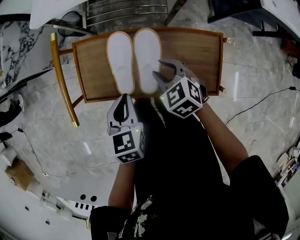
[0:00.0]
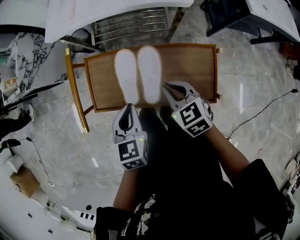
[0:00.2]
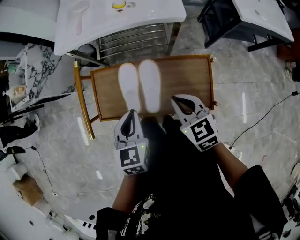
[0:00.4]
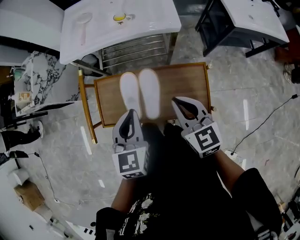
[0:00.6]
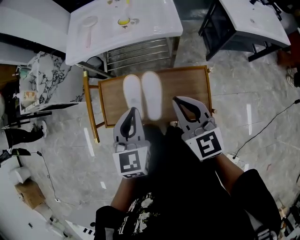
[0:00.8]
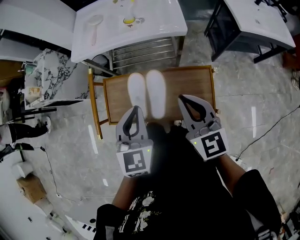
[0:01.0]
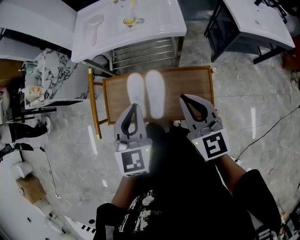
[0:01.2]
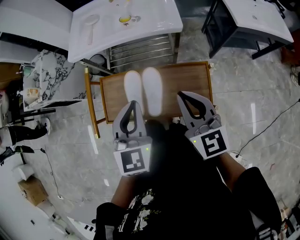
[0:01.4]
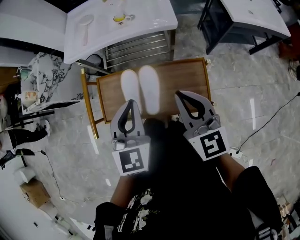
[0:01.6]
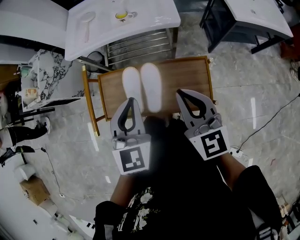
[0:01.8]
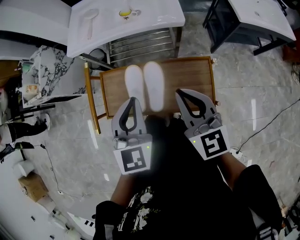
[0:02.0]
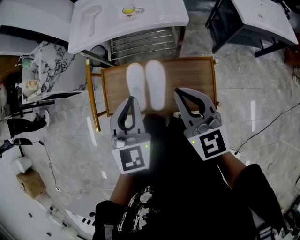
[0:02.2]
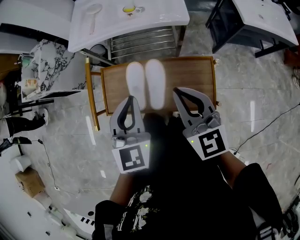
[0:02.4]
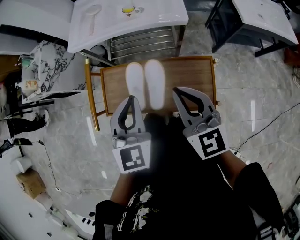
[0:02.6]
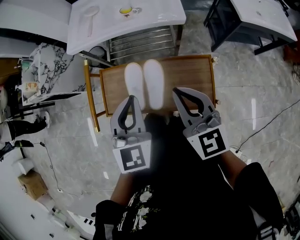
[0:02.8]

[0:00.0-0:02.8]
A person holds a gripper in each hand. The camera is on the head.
0.0 to 1.4 s: The grippers both shift upward by roughly 25 cm. The left gripper changes its angle by about 30 degrees. Meanwhile the right gripper tips its fingers upward by about 40 degrees, and closes up.
1.4 to 2.8 s: The grippers move only a little.

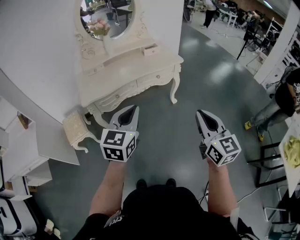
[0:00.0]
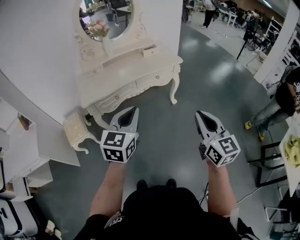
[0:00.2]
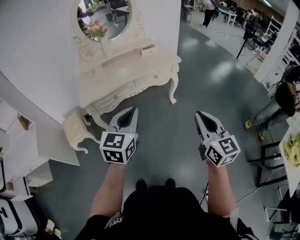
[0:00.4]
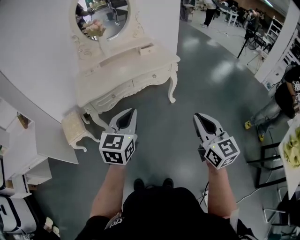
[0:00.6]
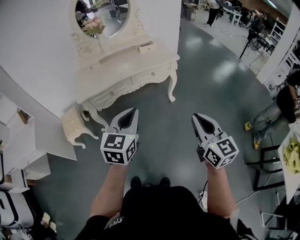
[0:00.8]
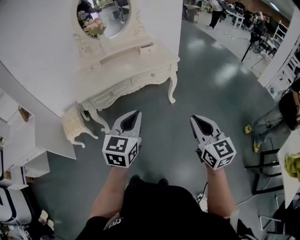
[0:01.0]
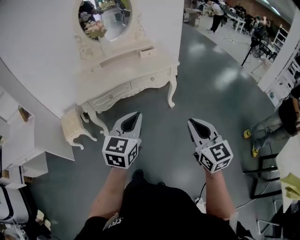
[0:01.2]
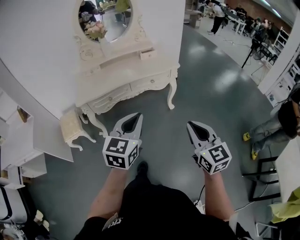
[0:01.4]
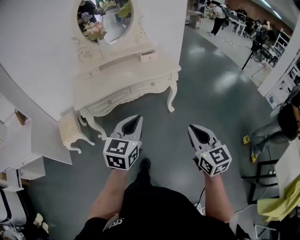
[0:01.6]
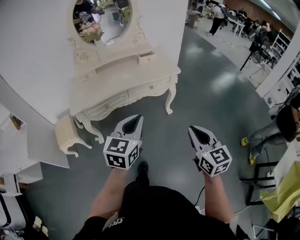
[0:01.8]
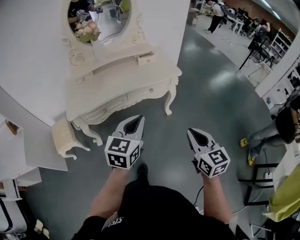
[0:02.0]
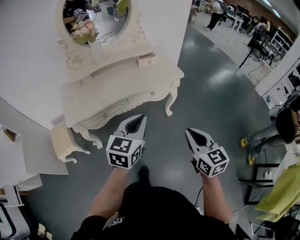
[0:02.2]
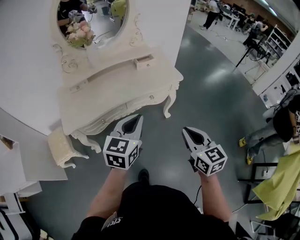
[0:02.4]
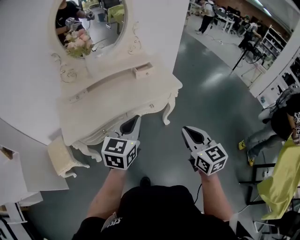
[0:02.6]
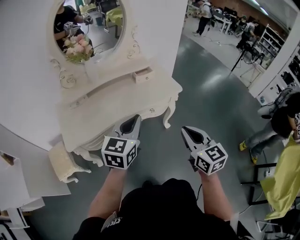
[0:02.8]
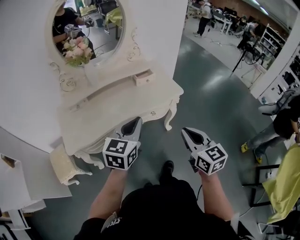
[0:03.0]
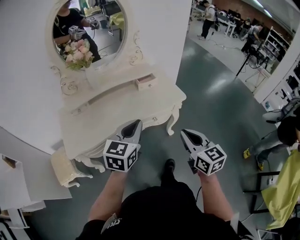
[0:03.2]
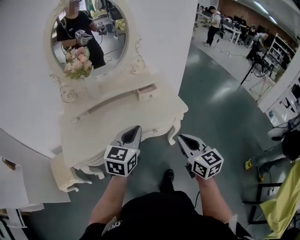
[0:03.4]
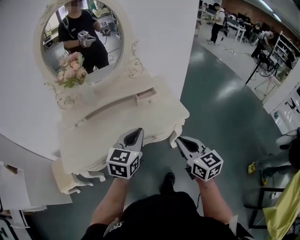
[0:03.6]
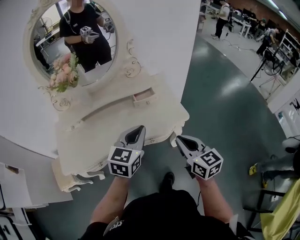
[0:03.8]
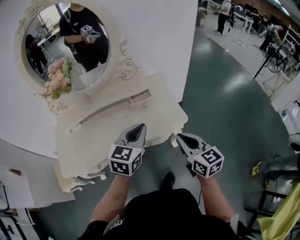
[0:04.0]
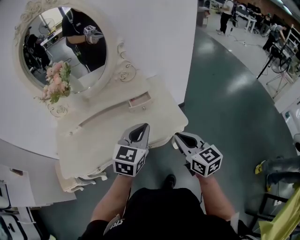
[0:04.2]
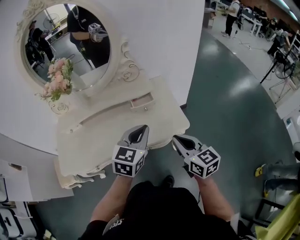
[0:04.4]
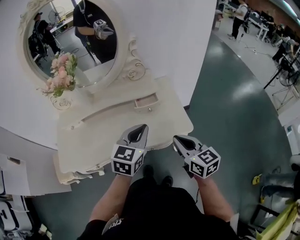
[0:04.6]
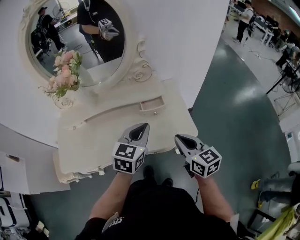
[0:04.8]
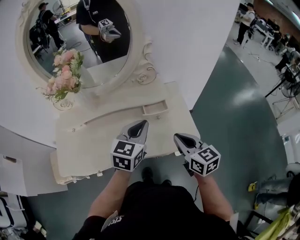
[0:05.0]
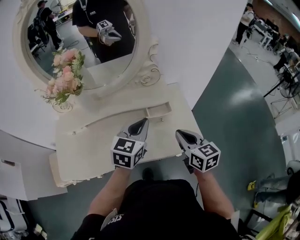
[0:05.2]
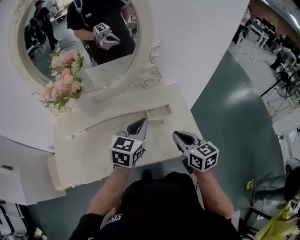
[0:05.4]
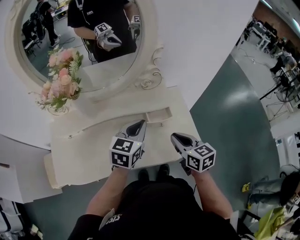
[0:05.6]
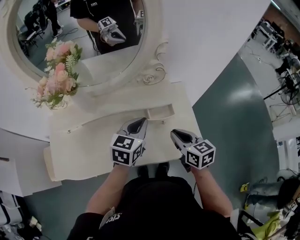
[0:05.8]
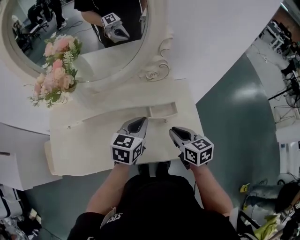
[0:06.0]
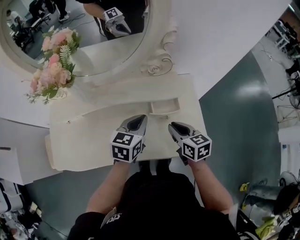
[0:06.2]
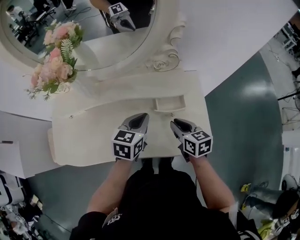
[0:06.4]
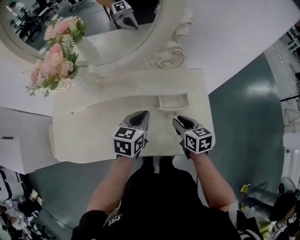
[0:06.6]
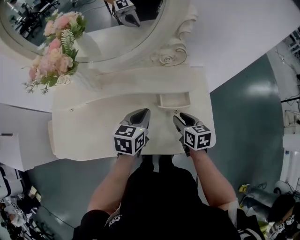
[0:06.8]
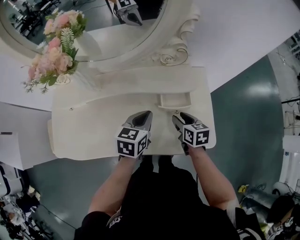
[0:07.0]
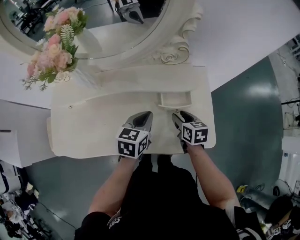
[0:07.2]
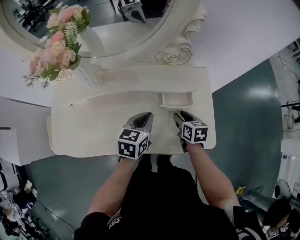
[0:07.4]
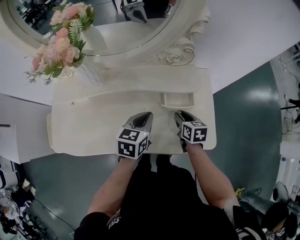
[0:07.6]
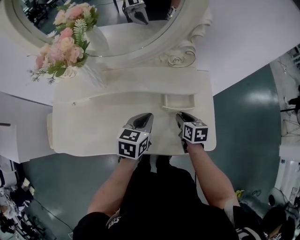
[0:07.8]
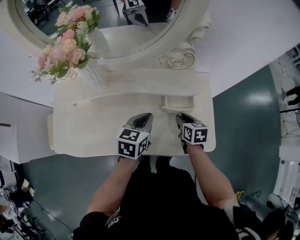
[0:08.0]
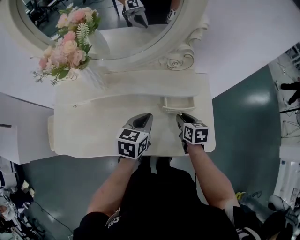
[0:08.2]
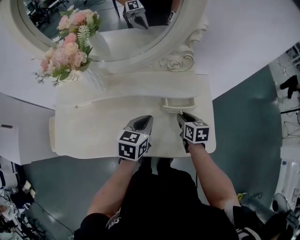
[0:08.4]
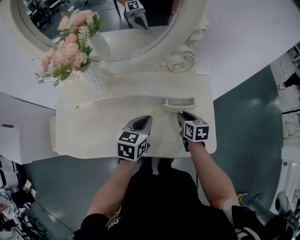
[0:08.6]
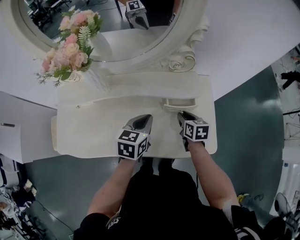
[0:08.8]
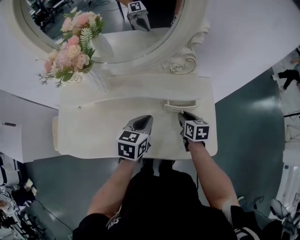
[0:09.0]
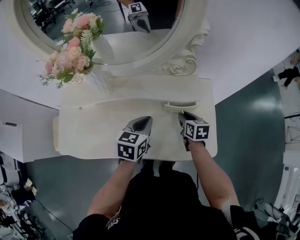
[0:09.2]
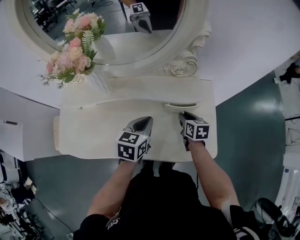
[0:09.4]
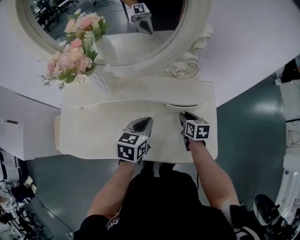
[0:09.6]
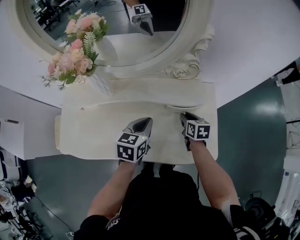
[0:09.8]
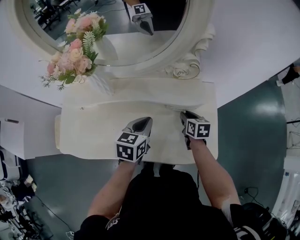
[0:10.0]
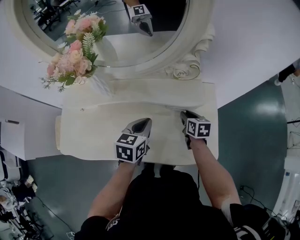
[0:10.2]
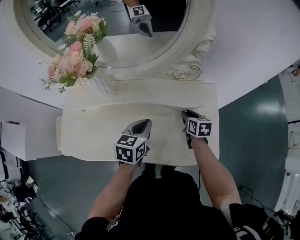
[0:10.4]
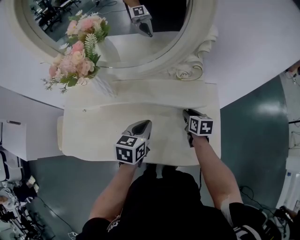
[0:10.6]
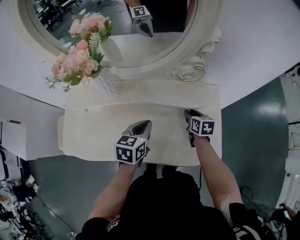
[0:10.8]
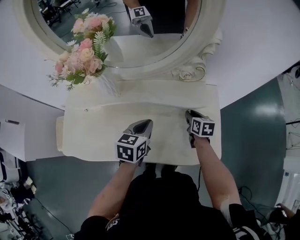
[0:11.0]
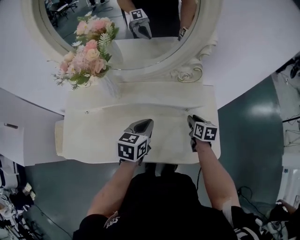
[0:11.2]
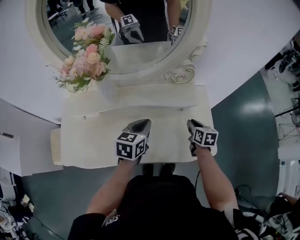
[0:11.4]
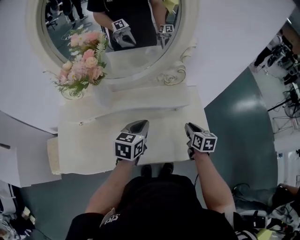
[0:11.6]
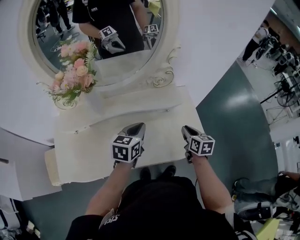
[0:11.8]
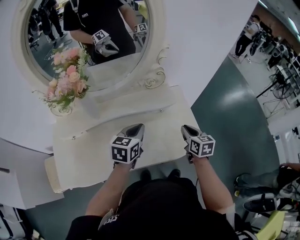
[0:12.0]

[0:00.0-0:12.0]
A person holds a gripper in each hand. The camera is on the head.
0.0 to 1.6 s: The left gripper moves to the right, approximately 10 cm. Meanwhile the right gripper goes roughly 10 cm to the right and downward.
1.6 to 3.0 s: Both grippers travel together forward, roughly 30 cm.
3.0 to 4.4 s: The right gripper moves forward, about 25 cm, and changes its angle by roughly 20 degrees, while the left gripper travels forward and to the right by about 30 cm.
4.4 to 6.0 s: The right gripper heads forward, downward and to the left, covering some 25 cm. The left gripper is displaced forward, to the left and downward by some 25 cm.
6.0 to 7.6 s: The left gripper is displaced downward by some 5 cm. The right gripper moves downward and forward, about 15 cm.
7.6 to 9.0 s: The grippers make only small movements.
9.0 to 10.4 s: The grippers move only a little.
10.4 to 12.0 s: The left gripper travels upward by some 5 cm, and swivels about 20 degrees. The right gripper shifts about 20 cm backward, upward and to the right, and turns by some 20 degrees.

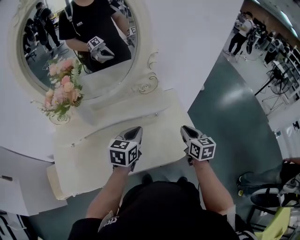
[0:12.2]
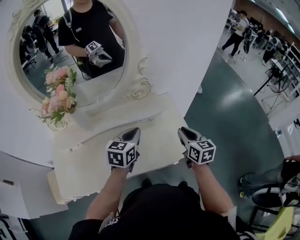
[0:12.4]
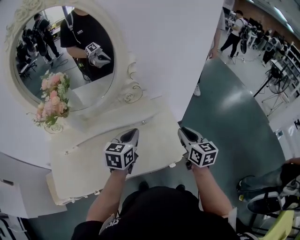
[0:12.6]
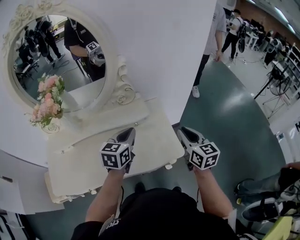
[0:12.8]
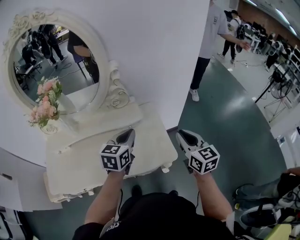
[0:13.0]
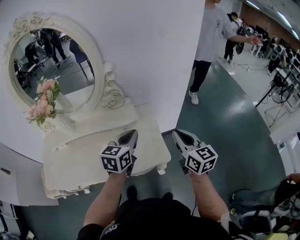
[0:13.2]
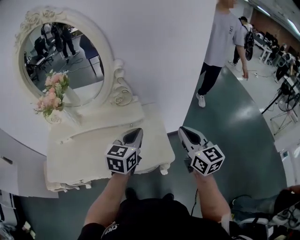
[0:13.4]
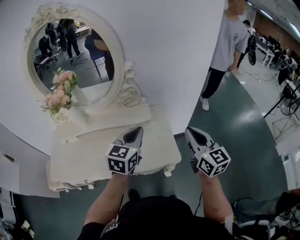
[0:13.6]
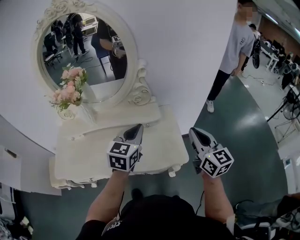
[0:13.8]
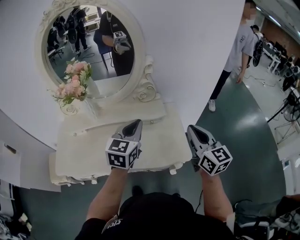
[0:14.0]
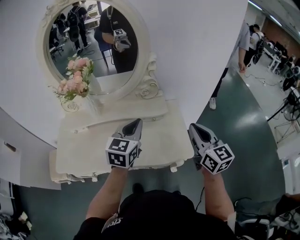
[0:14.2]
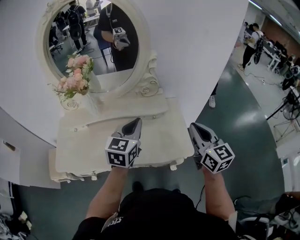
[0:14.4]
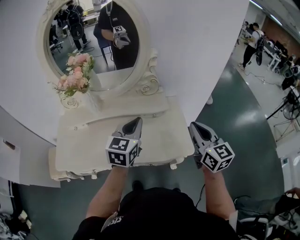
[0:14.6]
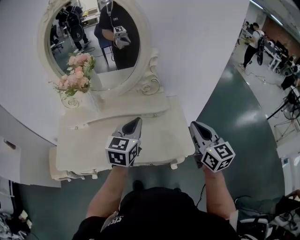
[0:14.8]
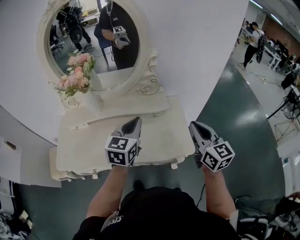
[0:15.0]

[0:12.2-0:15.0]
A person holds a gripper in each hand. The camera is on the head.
12.2 to 13.6 s: The right gripper is displaced upward and to the right by about 25 cm, and changes its angle by roughly 30 degrees. The left gripper moves to the right and upward, some 20 cm.
13.6 to 15.0 s: Both grippers travel together to the left, roughly 10 cm.

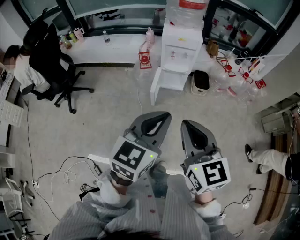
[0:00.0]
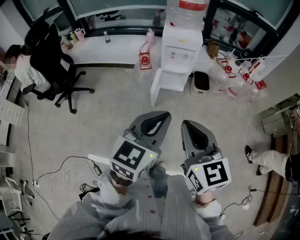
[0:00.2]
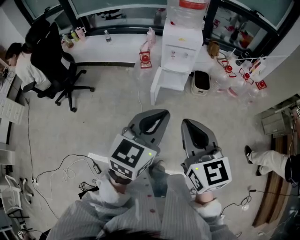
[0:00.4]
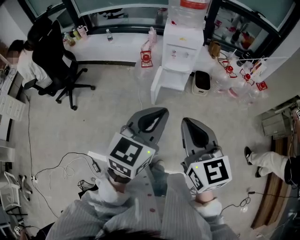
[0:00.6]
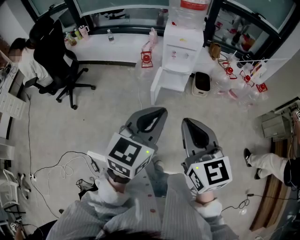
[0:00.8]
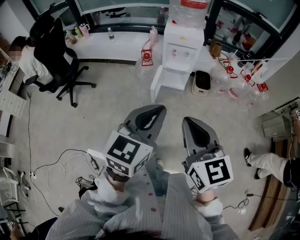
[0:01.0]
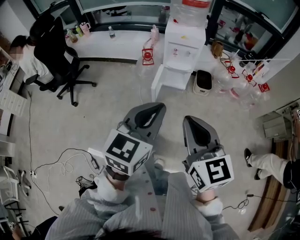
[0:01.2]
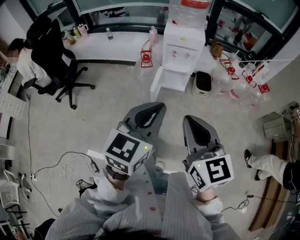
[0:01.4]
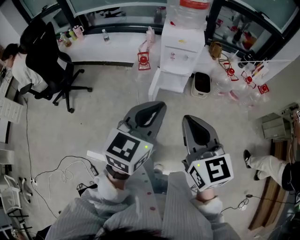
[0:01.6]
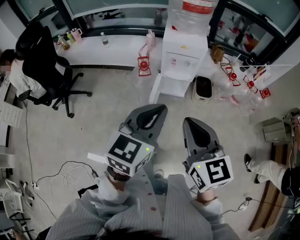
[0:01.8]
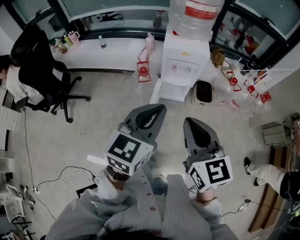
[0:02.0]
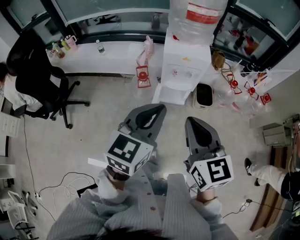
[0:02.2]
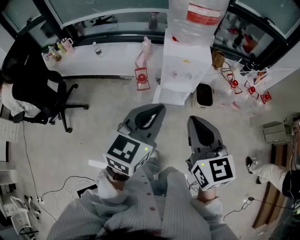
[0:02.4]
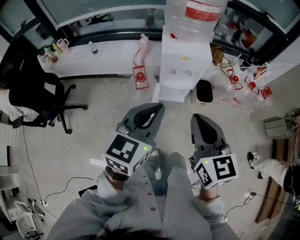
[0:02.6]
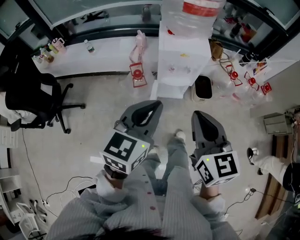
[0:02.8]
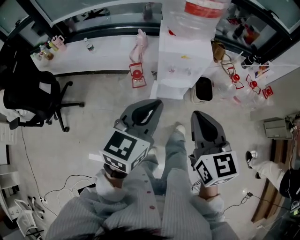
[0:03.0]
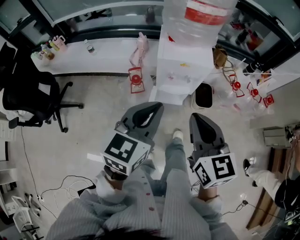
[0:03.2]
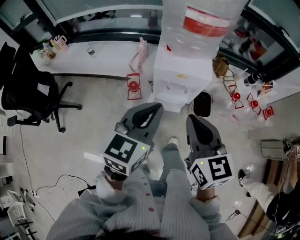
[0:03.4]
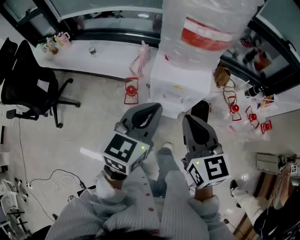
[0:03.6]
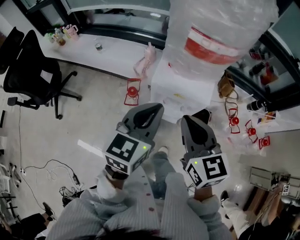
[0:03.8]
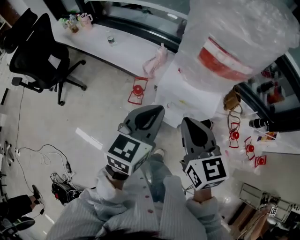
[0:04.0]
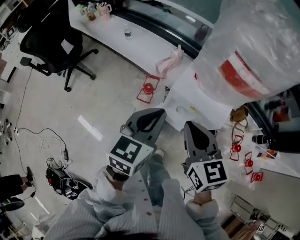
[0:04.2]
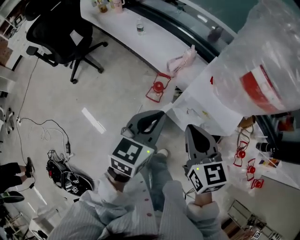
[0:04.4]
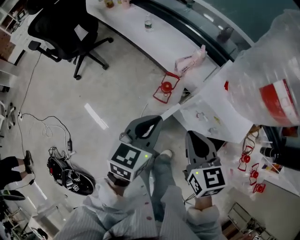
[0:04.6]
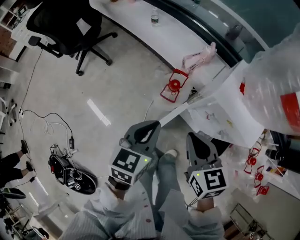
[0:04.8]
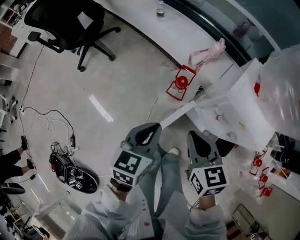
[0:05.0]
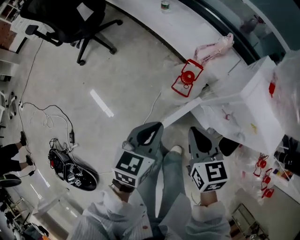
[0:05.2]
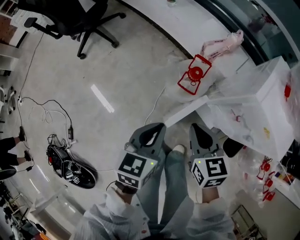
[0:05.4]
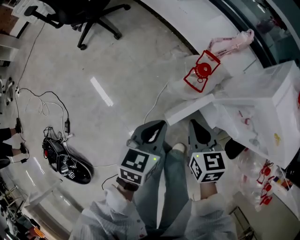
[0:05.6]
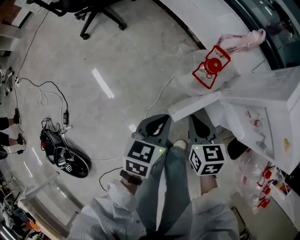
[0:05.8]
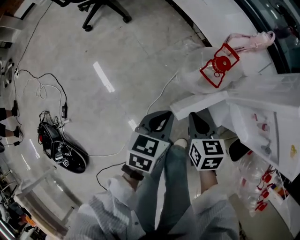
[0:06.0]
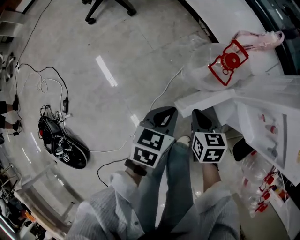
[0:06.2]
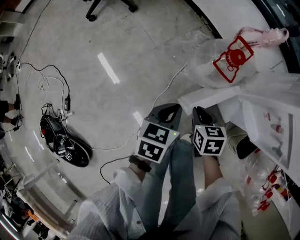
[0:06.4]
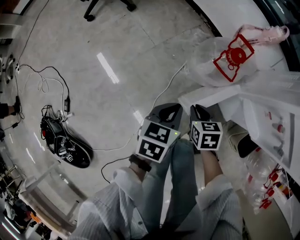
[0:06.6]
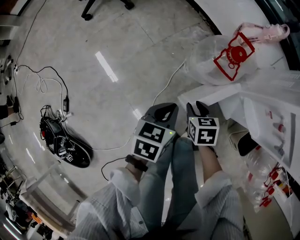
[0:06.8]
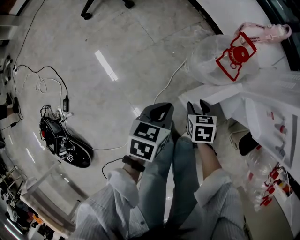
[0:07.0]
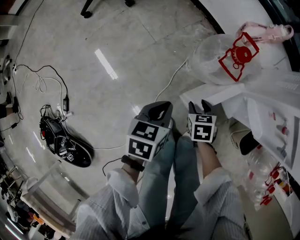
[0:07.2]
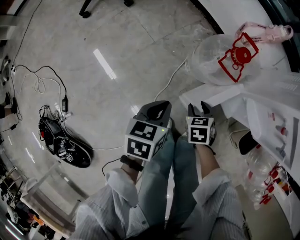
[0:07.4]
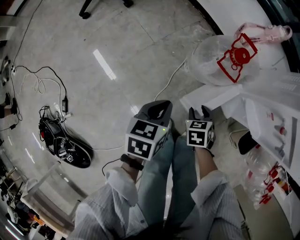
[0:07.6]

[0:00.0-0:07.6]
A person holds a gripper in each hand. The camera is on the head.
0.0 to 1.6 s: Both grippers move forward, about 5 cm.
1.6 to 3.0 s: The two grippers go roughly 25 cm forward.
3.0 to 4.6 s: The left gripper shifts by some 20 cm, and changes its angle by about 40 degrees, while the right gripper moves about 25 cm, and turns by some 40 degrees.
4.6 to 6.0 s: Both grippers move downward, roughly 35 cm. The right gripper rotates approximately 20 degrees, while the left gripper swivels approximately 20 degrees.
6.0 to 7.6 s: The left gripper goes approximately 10 cm downward and to the left, while the right gripper travels downward by approximately 15 cm, rotates about 30 degrees, and opens up.
